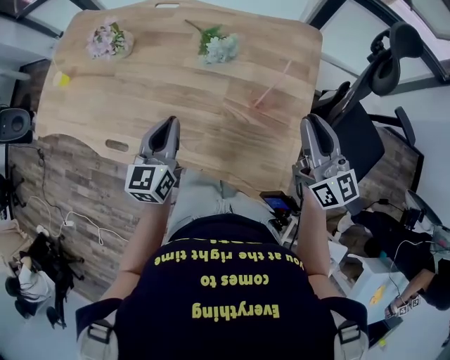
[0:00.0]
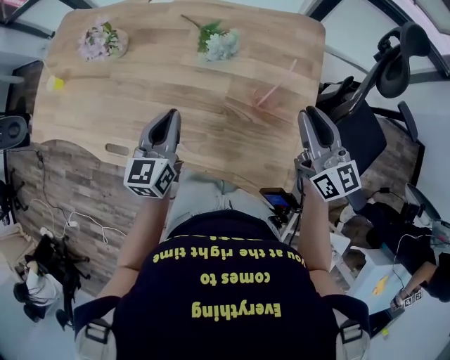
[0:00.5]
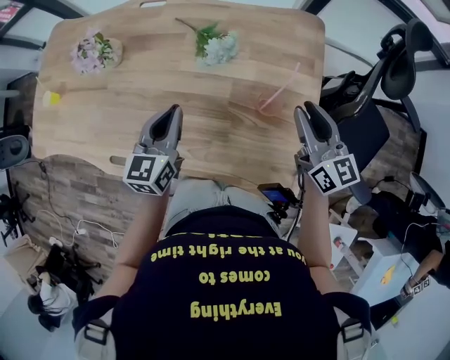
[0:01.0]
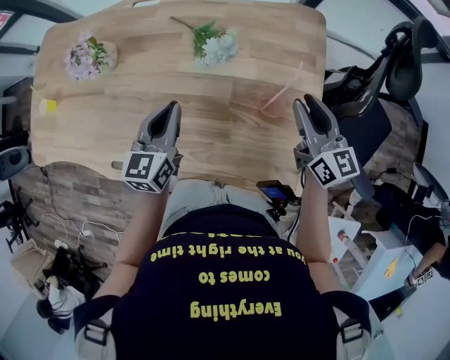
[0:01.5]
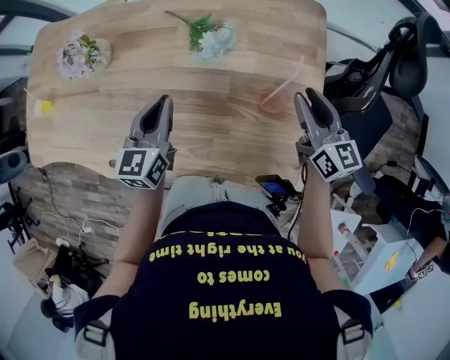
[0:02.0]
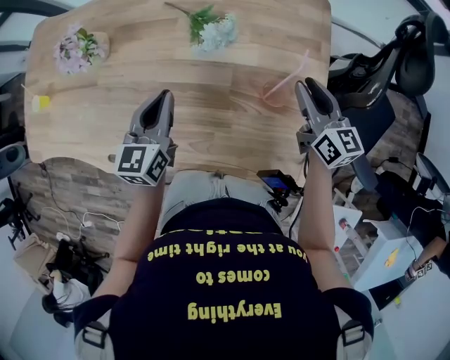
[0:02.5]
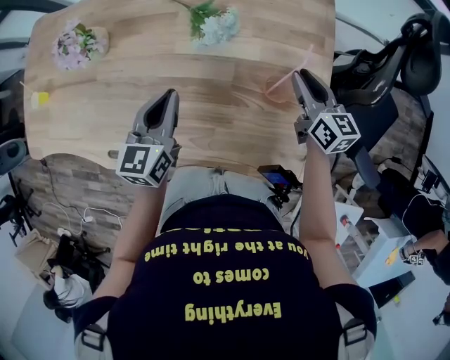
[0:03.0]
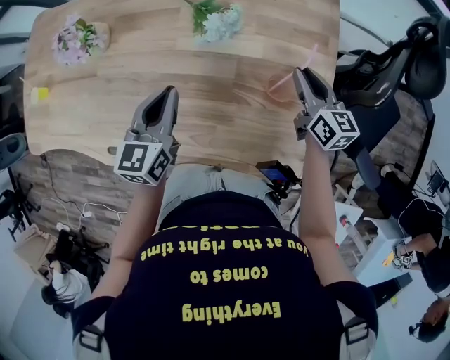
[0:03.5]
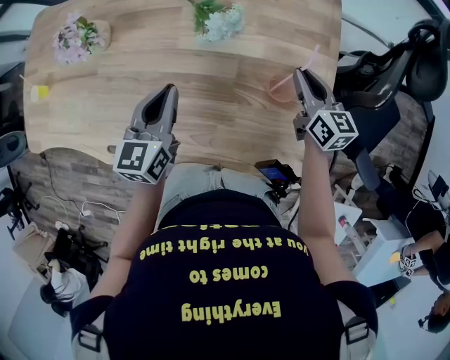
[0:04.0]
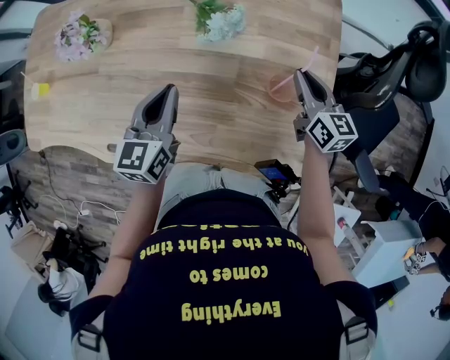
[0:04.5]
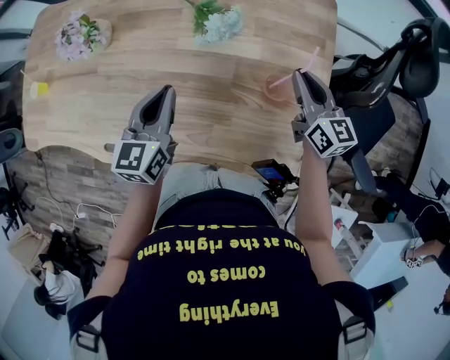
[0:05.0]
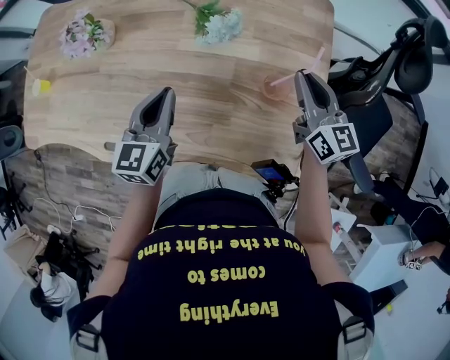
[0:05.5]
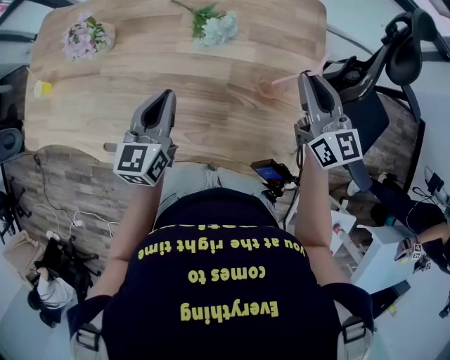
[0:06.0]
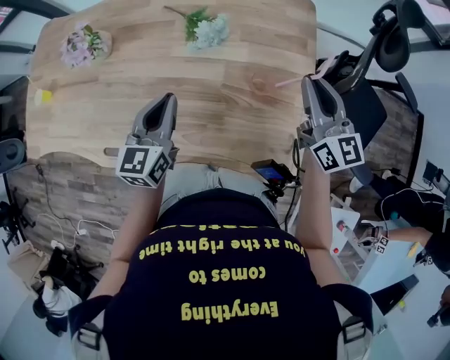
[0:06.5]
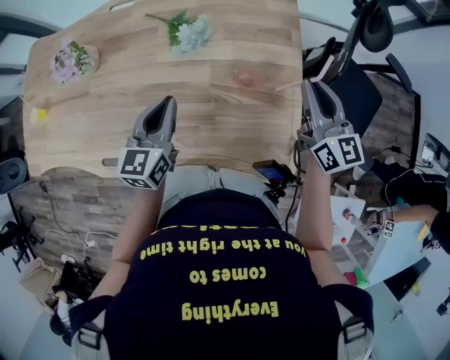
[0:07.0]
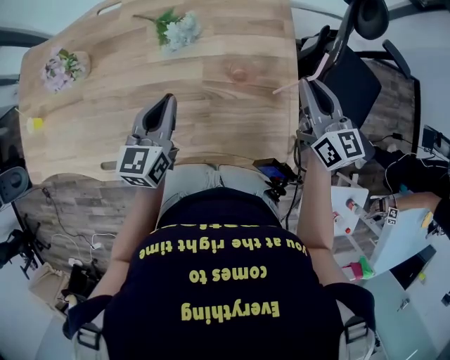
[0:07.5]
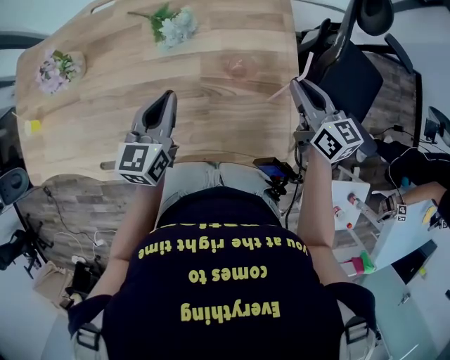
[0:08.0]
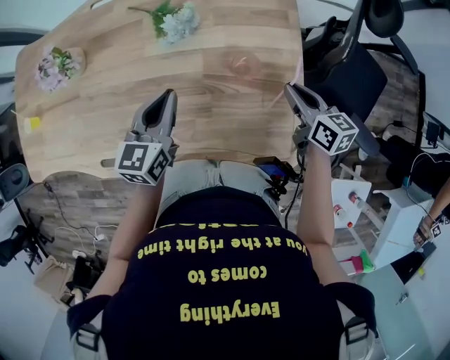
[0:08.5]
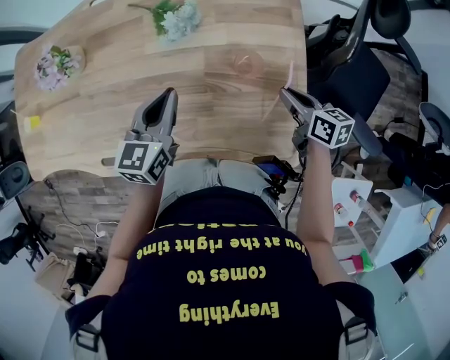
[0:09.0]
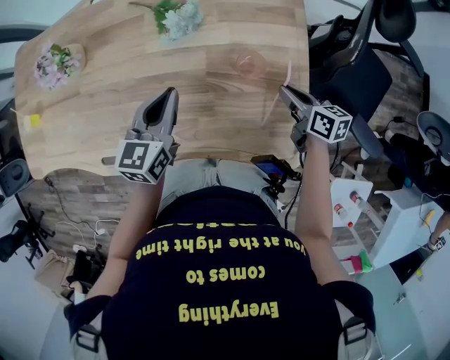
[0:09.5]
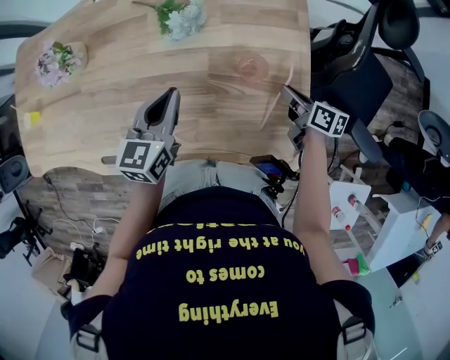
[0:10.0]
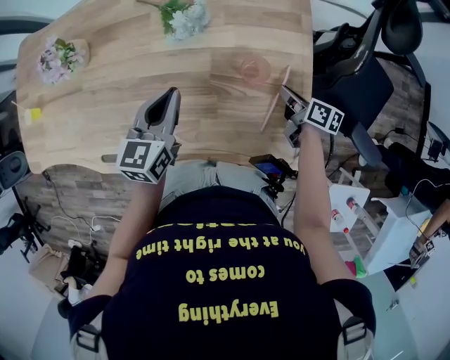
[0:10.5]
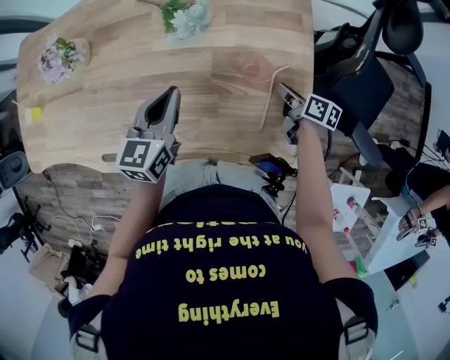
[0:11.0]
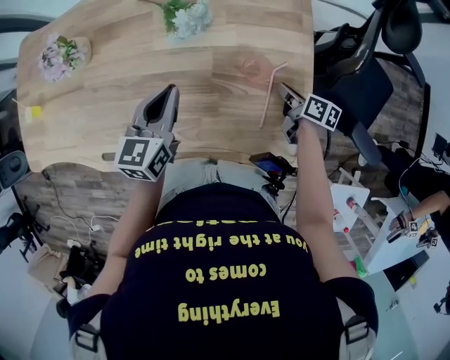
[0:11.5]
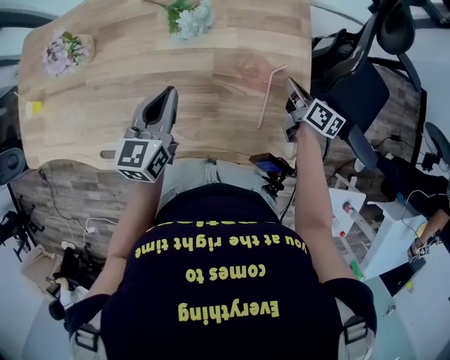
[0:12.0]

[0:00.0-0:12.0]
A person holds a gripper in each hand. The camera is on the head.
0:00.0 to 0:02.0: The right gripper heads forward and downward, covering about 15 cm, while the left gripper goes roughly 10 cm forward.
0:02.0 to 0:04.0: The right gripper shifts approximately 10 cm downward.
0:04.0 to 0:06.0: The right gripper heads upward, covering roughly 15 cm, and swivels approximately 20 degrees.
0:06.0 to 0:08.0: The left gripper travels to the right by roughly 5 cm. Meanwhile the right gripper moves downward, to the right and backward, about 10 cm, and swivels approximately 20 degrees.
0:08.0 to 0:10.0: The right gripper travels downward by some 15 cm, and turns by approximately 30 degrees.
0:10.0 to 0:12.0: The grippers stay close to where they were, moving slightly.

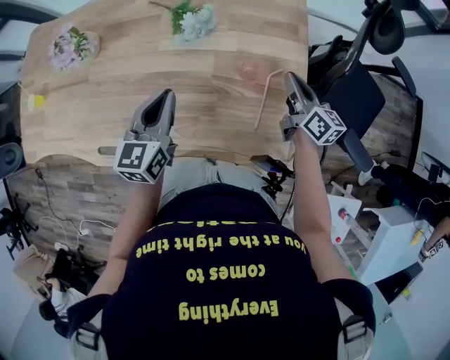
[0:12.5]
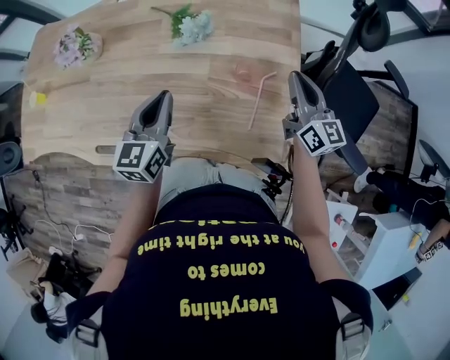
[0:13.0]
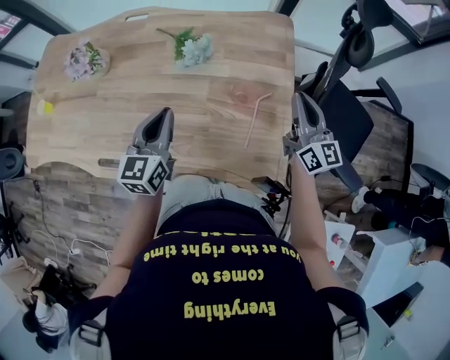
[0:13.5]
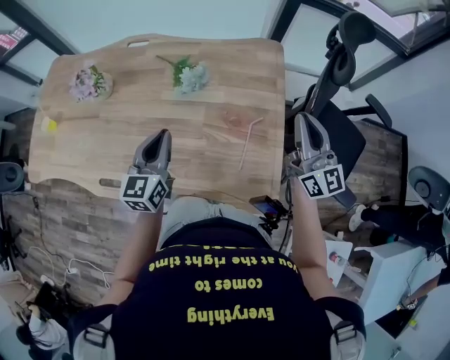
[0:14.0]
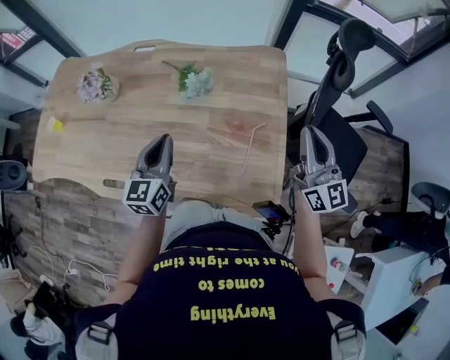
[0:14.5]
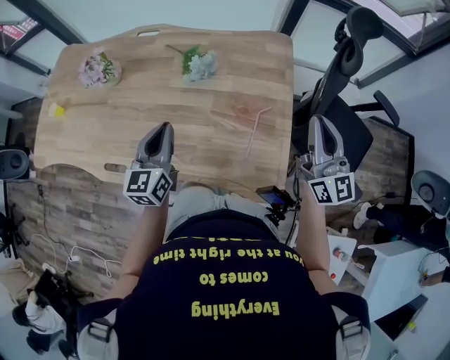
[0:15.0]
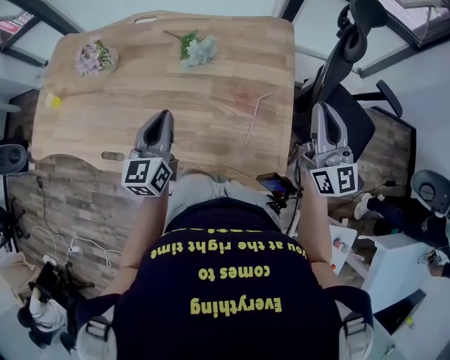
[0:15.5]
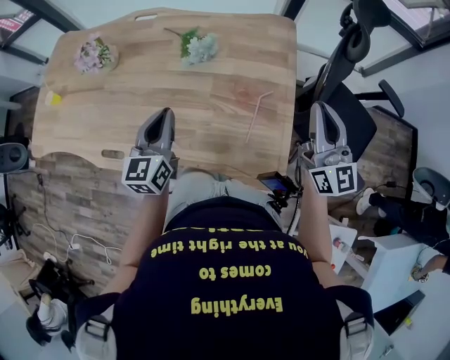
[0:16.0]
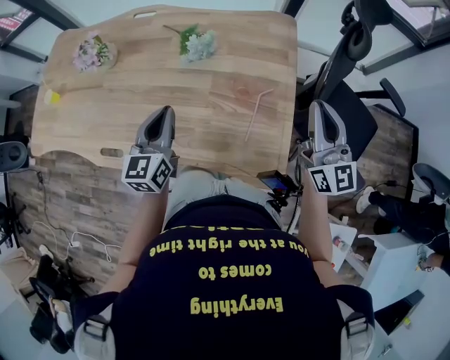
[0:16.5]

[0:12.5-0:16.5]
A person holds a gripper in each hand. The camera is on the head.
0:12.5 to 0:14.5: The left gripper shifts approximately 5 cm upward, while the right gripper shifts some 25 cm upward and backward, and swivels about 40 degrees.
0:14.5 to 0:16.5: The grippers move only a little.

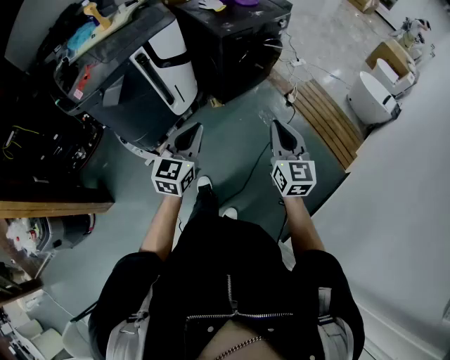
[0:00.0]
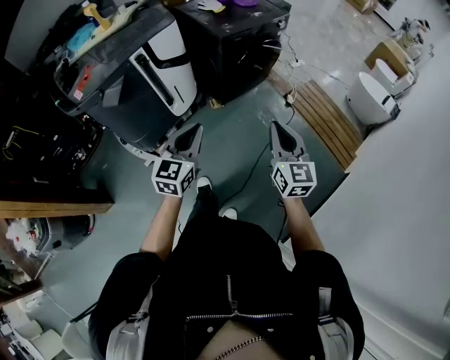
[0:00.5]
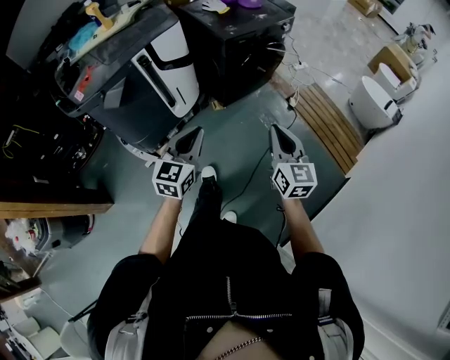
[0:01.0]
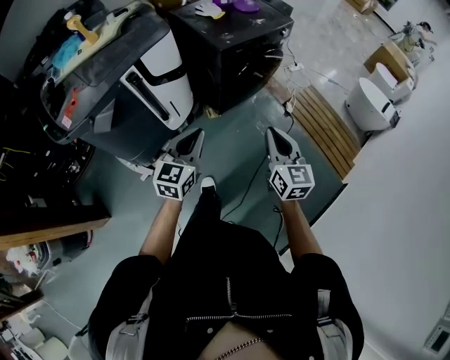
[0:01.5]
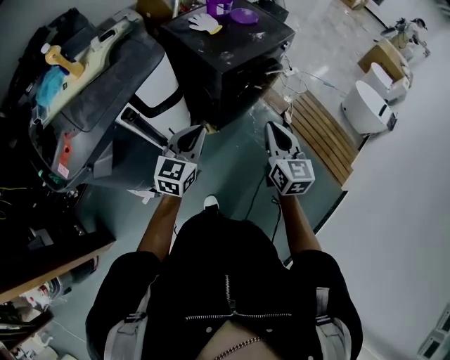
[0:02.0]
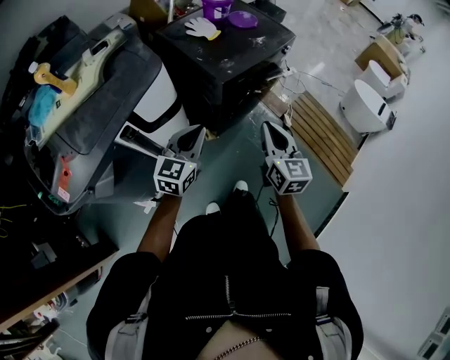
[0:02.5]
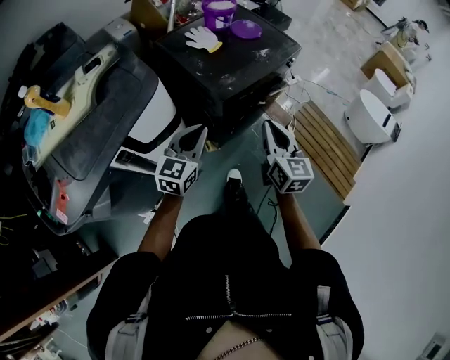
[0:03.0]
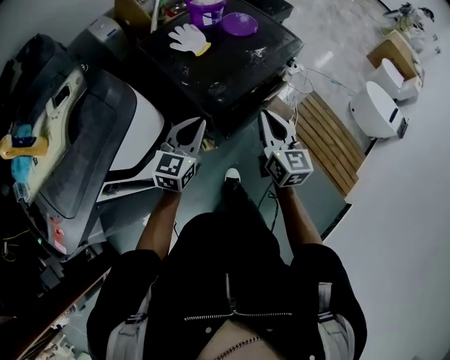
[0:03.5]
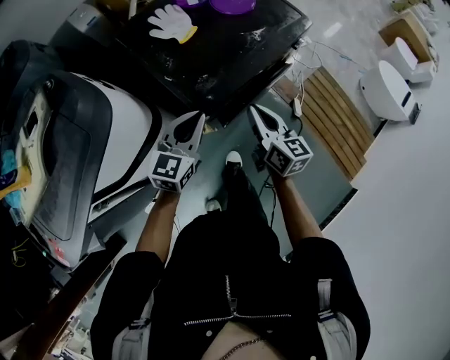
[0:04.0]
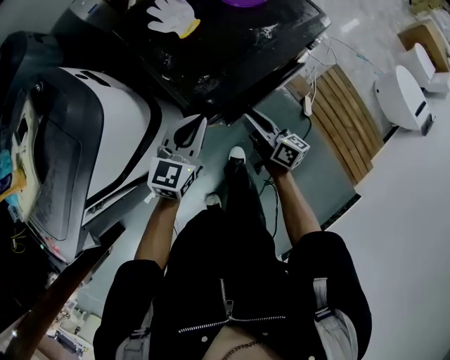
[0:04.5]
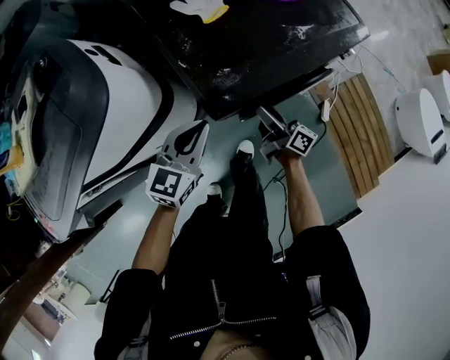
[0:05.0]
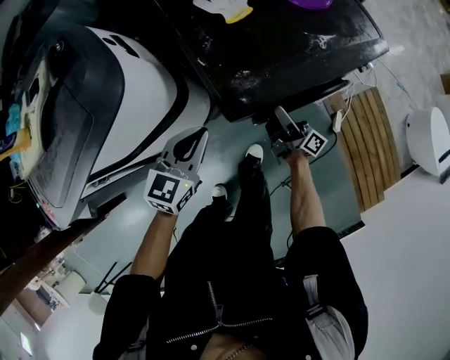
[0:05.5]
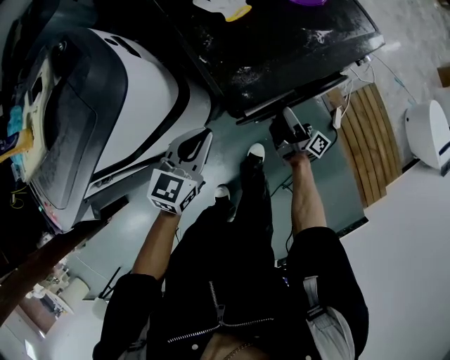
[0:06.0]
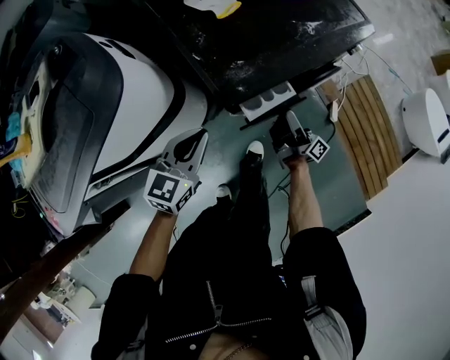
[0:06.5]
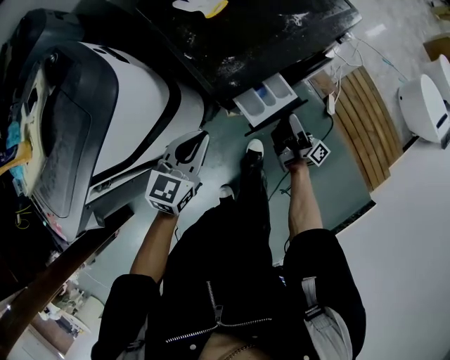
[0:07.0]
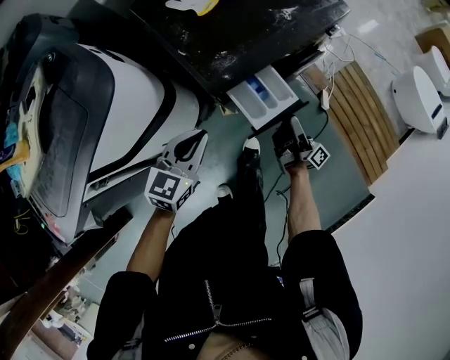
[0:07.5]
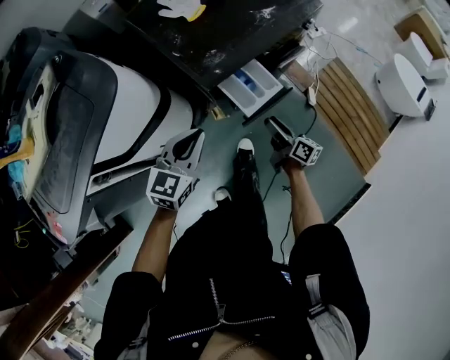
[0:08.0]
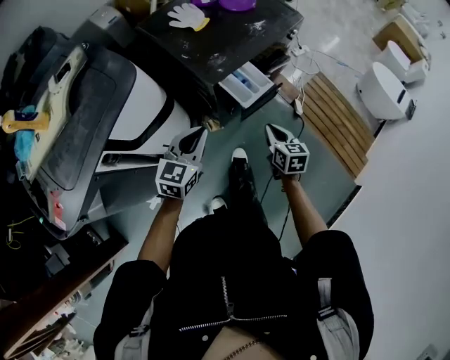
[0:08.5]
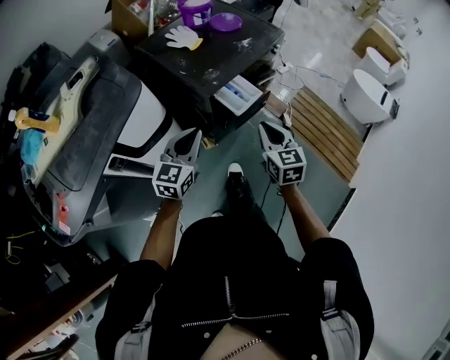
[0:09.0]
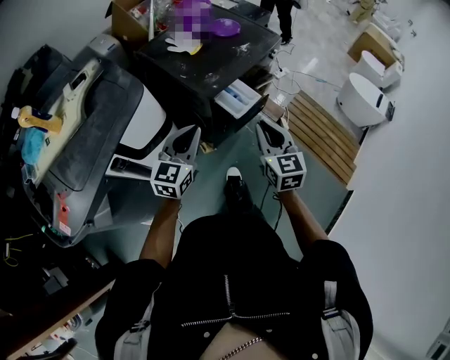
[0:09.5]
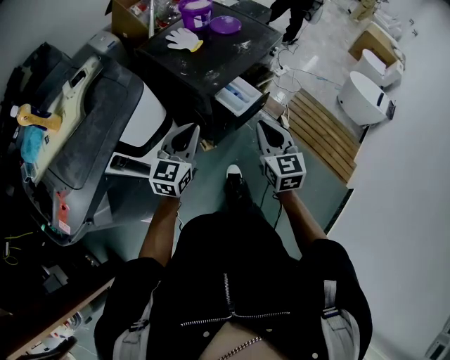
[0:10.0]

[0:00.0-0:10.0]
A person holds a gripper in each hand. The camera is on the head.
0:00.0 to 0:02.0: The two grippers go approximately 30 cm forward.
0:02.0 to 0:04.0: The two grippers go roughly 35 cm forward. The right gripper rotates some 30 degrees.
0:04.0 to 0:06.0: The right gripper heads downward, covering some 15 cm, rotates around the line of its fingers by roughly 50 degrees, clockwise from behind, and opens its fingers. Meanwhile the left gripper travels to the left by approximately 5 cm.
0:06.0 to 0:08.0: The left gripper goes about 10 cm backward. The right gripper is displaced backward by roughly 15 cm, and tilts its fingers roughly 30 degrees downward.
0:08.0 to 0:10.0: The left gripper goes approximately 15 cm upward and backward. Meanwhile the right gripper goes approximately 30 cm upward and backward, twists roughly 60 degrees counterclockwise, seen from behind, and closes up.

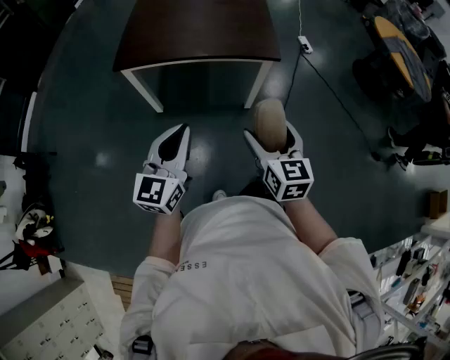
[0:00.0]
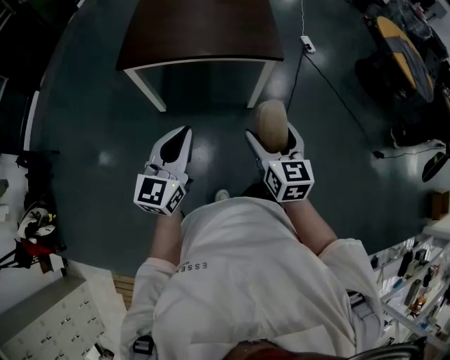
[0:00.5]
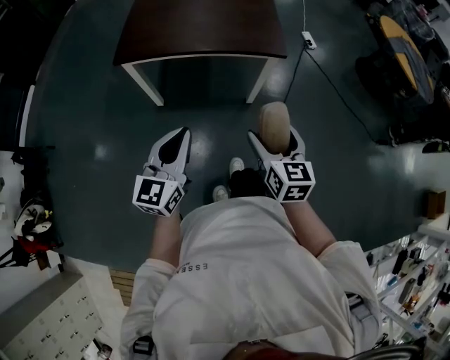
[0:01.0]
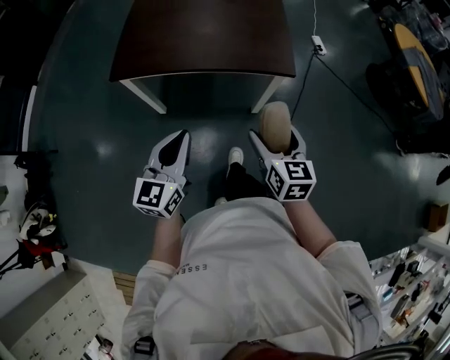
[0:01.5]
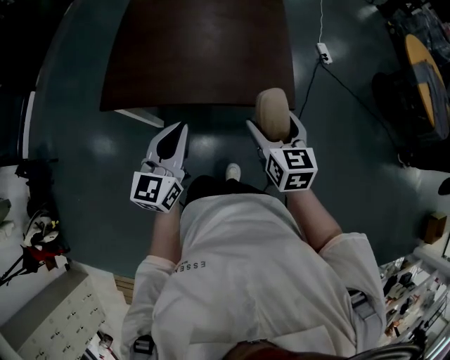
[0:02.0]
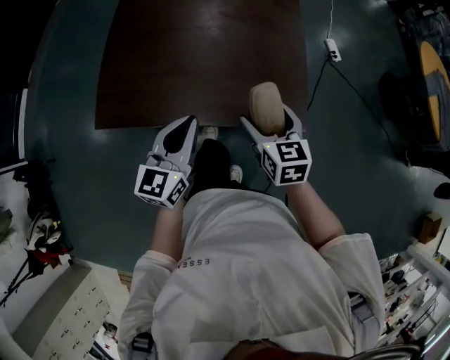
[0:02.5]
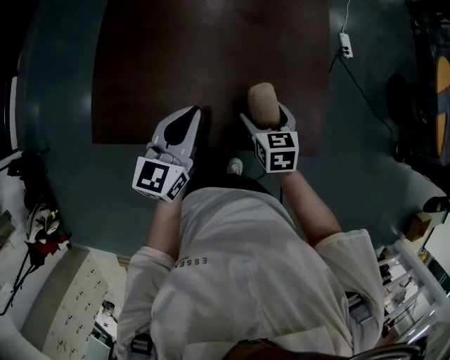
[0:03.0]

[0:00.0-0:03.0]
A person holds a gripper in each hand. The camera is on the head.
0:00.0 to 0:01.5: Both grippers travel together forward, roughly 10 cm.
0:01.5 to 0:03.0: Both grippers move forward, roughly 40 cm. The right gripper swivels roughly 20 degrees.
